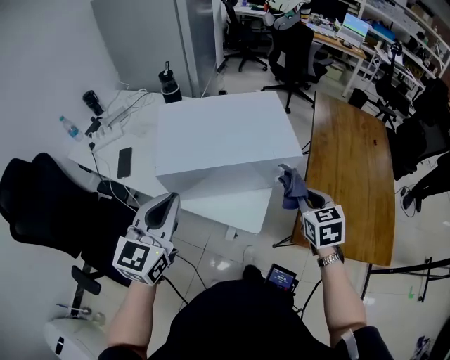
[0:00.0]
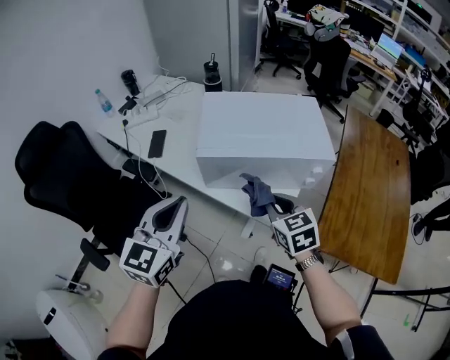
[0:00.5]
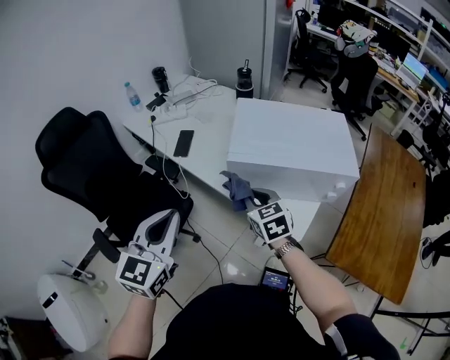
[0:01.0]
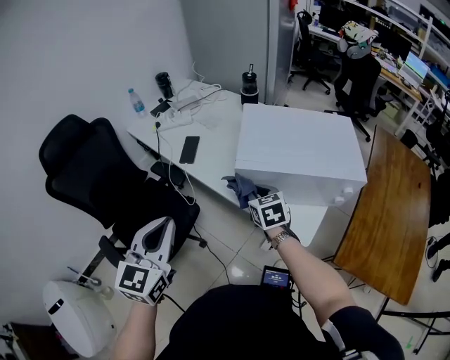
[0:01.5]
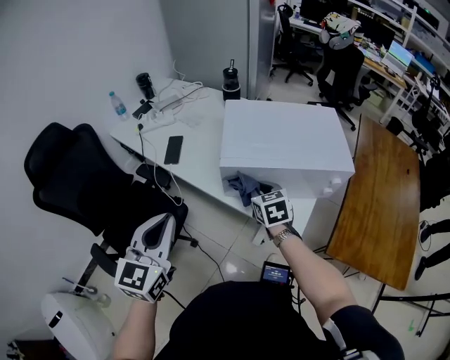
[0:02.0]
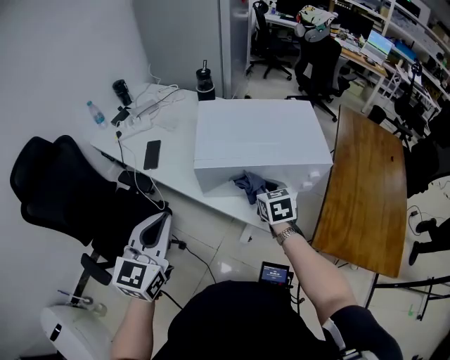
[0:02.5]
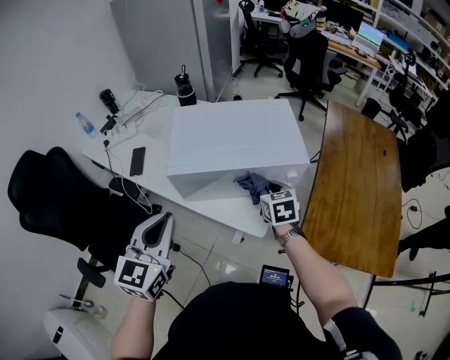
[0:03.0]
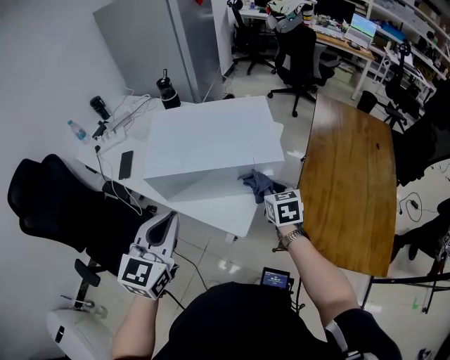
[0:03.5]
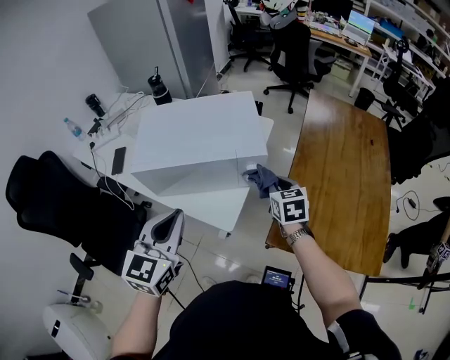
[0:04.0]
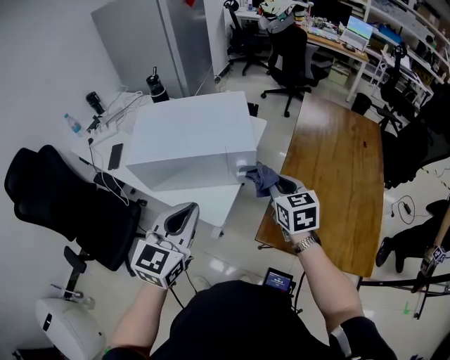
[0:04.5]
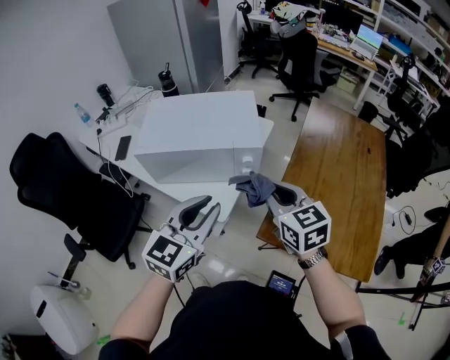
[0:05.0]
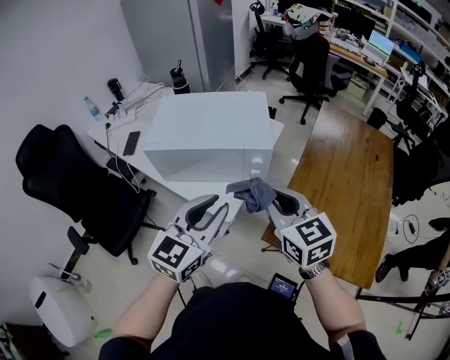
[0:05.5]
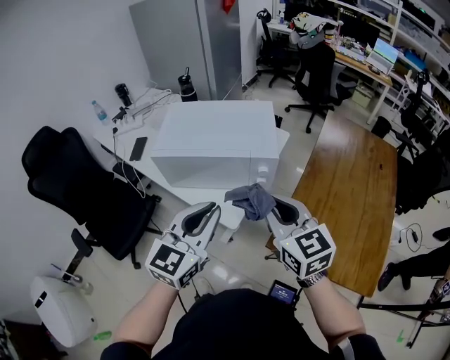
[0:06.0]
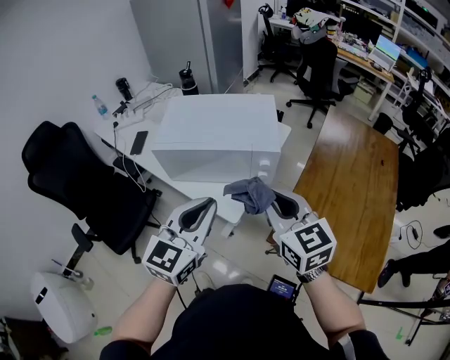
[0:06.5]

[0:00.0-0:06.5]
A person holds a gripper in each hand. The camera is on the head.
0:00.0 to 0:02.0: The right gripper moves some 35 cm, and swivels some 20 degrees; the left gripper ends up about 20 cm from where it was.
0:02.0 to 0:04.5: Both grippers travel together to the right, approximately 40 cm.
0:04.5 to 0:06.5: The right gripper shifts roughly 15 cm upward, to the left and backward, and turns by about 20 degrees.

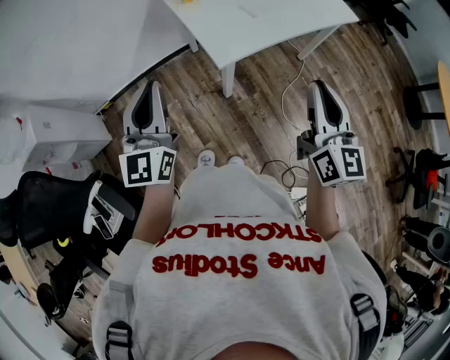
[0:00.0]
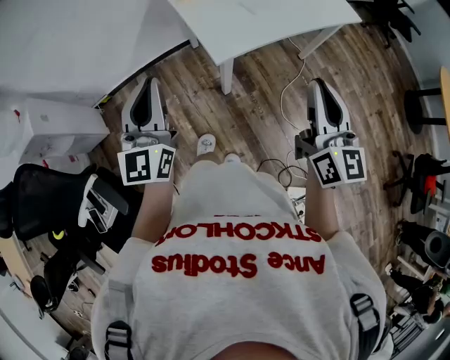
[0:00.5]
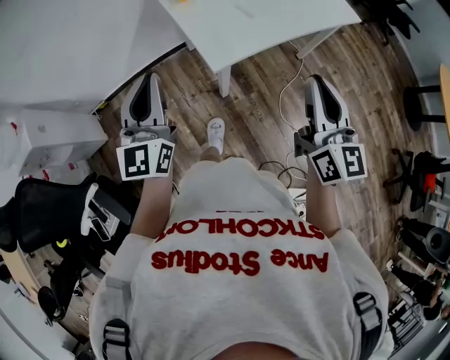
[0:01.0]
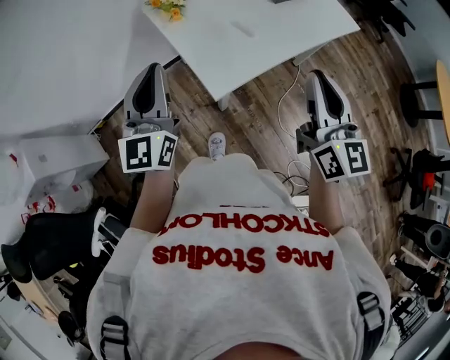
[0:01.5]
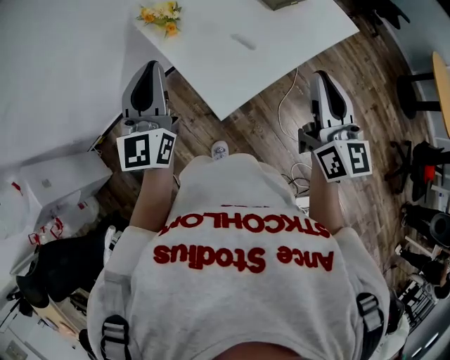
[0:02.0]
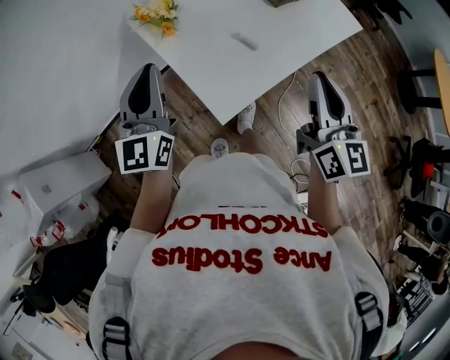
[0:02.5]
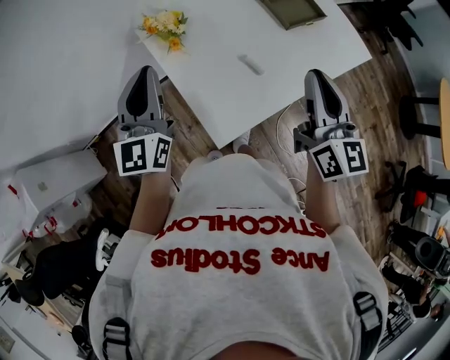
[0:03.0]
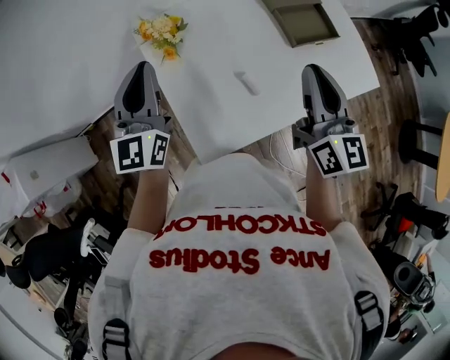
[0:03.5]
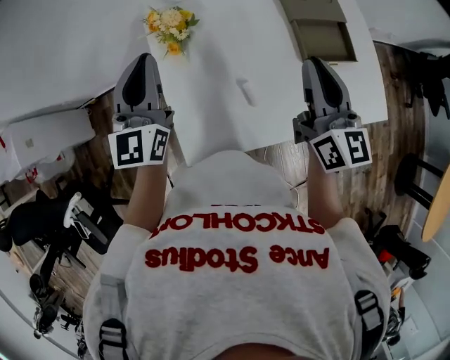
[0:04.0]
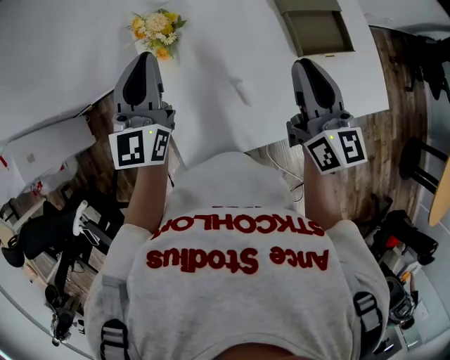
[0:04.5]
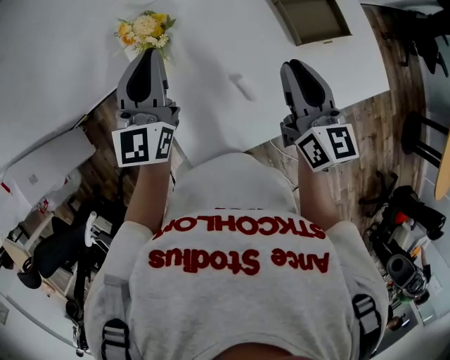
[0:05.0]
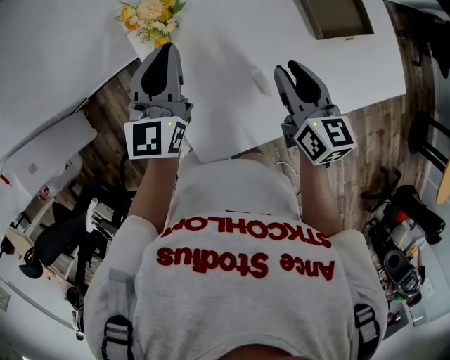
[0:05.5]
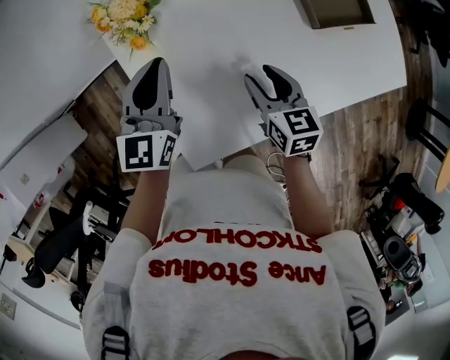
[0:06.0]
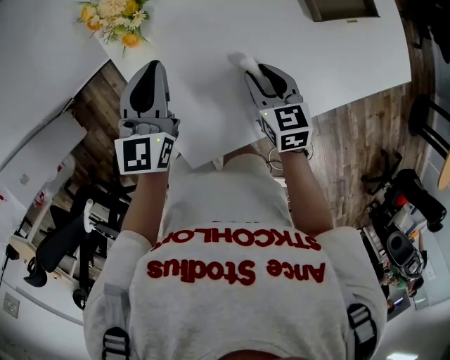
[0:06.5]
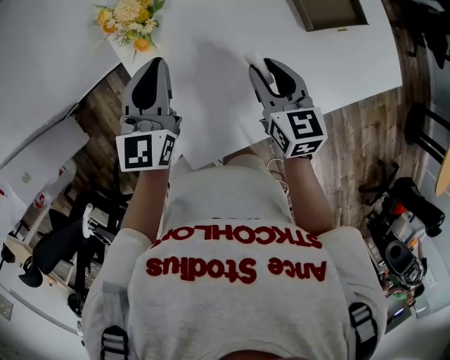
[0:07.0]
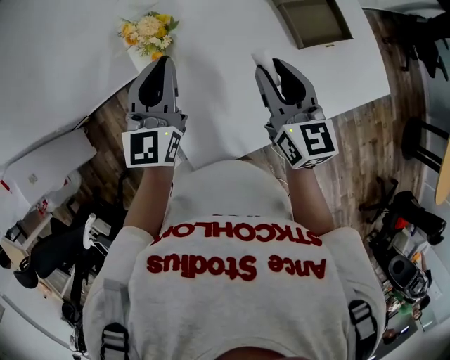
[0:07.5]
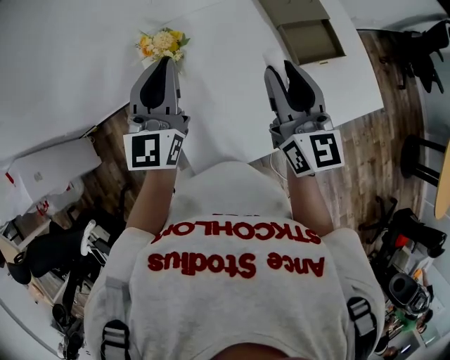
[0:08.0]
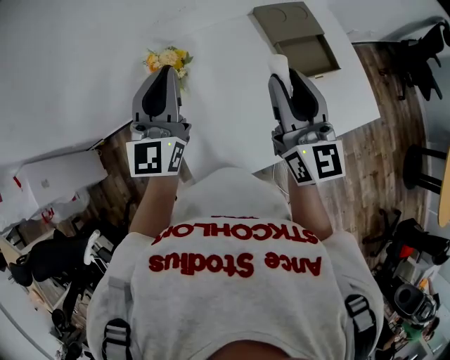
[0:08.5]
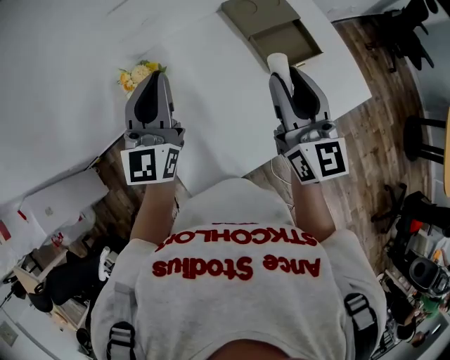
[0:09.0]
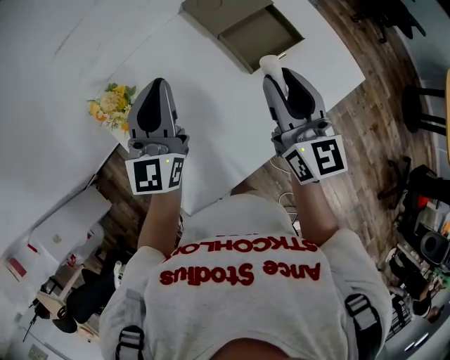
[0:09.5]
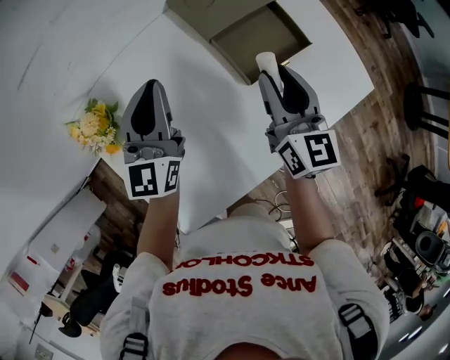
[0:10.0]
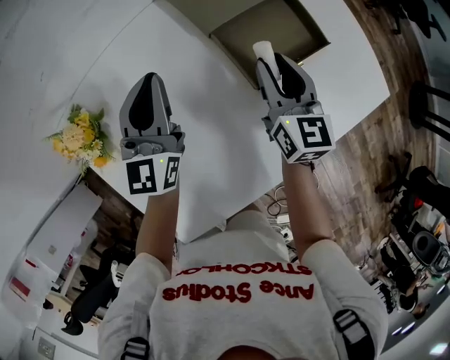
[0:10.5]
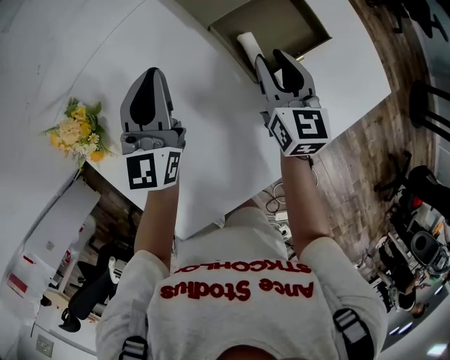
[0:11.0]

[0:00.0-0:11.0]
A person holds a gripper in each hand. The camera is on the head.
0:00.0 to 0:02.0: Both grippers move forward, about 20 cm.
0:02.0 to 0:03.5: The right gripper shifts approximately 20 cm forward. Meanwhile the left gripper goes roughly 10 cm forward.
0:03.5 to 0:05.5: The left gripper moves downward, to the right and forward, about 10 cm. Meanwhile the right gripper heads downward, covering approximately 15 cm, swivels roughly 30 degrees, and opens its fingers.
0:05.5 to 0:07.5: The right gripper goes approximately 5 cm upward.
0:07.5 to 0:09.0: The left gripper moves upward, about 5 cm. The right gripper shifts roughly 10 cm upward and to the right.
0:09.0 to 0:11.0: The left gripper is displaced downward, forward and to the right by about 20 cm; the right gripper is displaced downward and forward by roughly 25 cm, and turns by about 30 degrees.

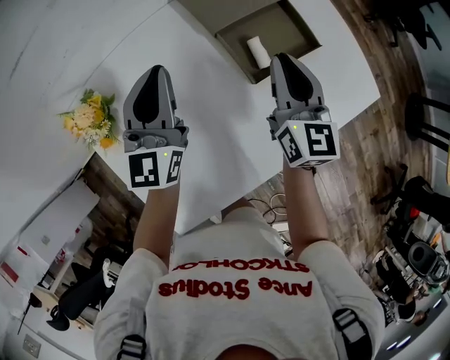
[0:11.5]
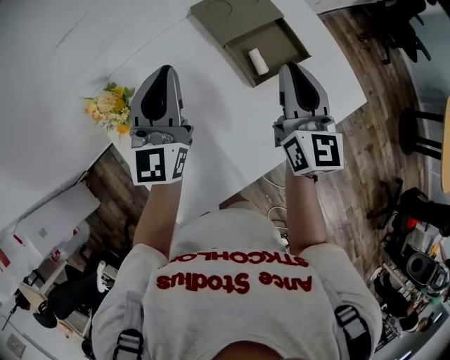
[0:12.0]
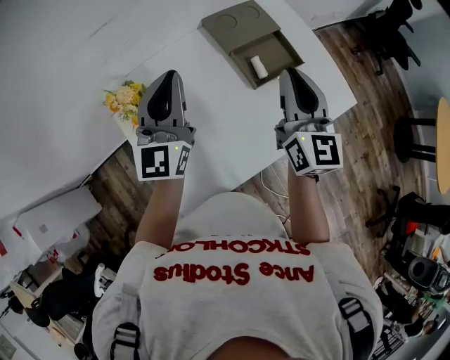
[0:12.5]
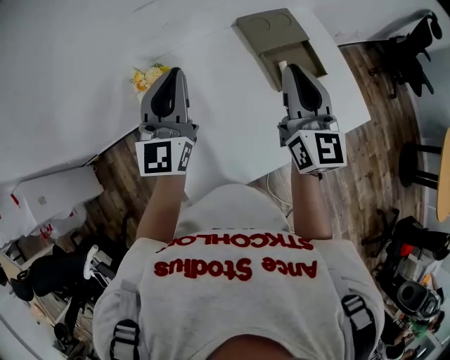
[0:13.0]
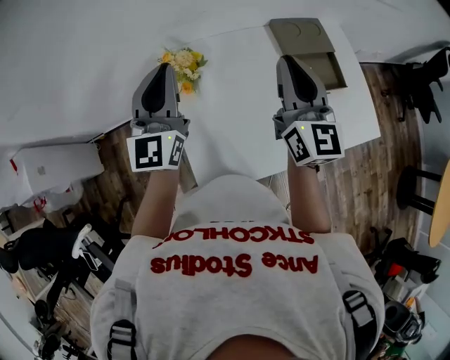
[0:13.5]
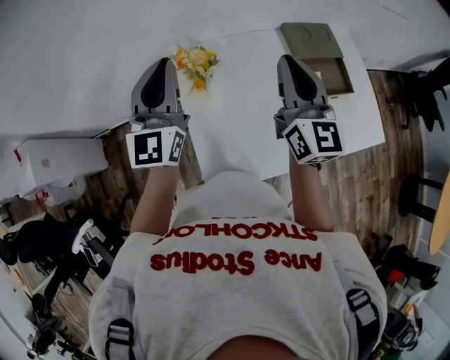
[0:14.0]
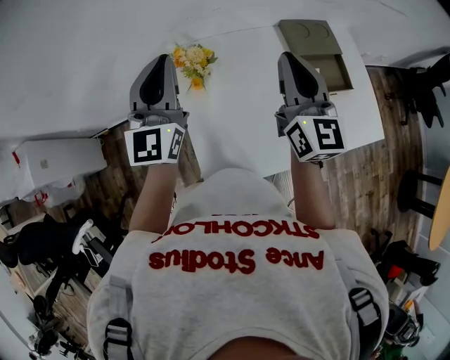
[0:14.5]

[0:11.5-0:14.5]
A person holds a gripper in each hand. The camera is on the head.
0:11.5 to 0:13.0: Both grippers move upward, to the left and backward, about 20 cm.
0:13.0 to 0:14.5: Both grippers travel together to the left, roughly 10 cm.

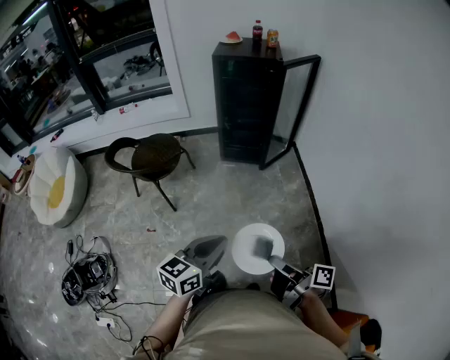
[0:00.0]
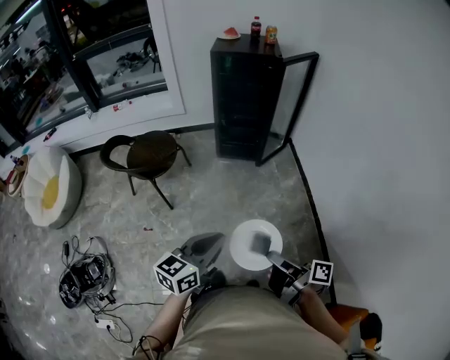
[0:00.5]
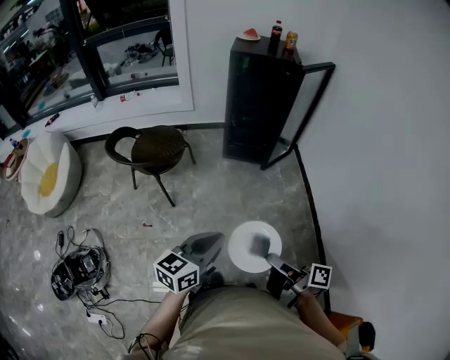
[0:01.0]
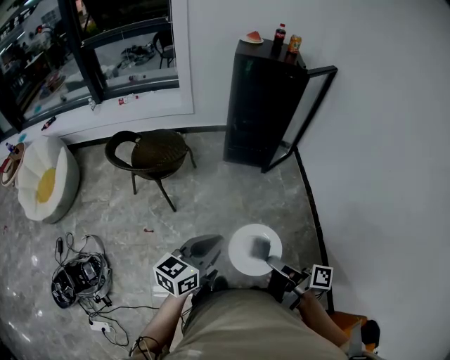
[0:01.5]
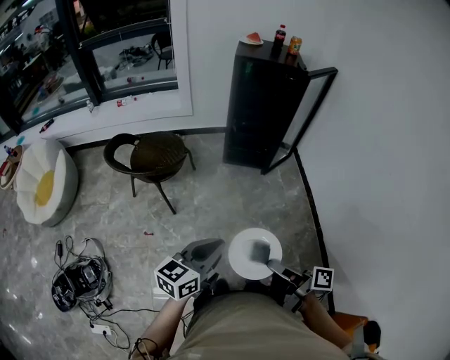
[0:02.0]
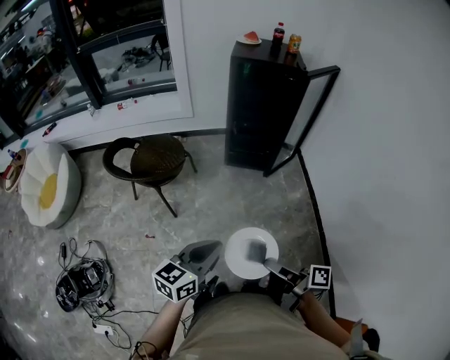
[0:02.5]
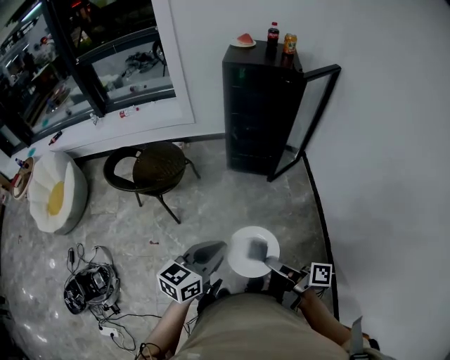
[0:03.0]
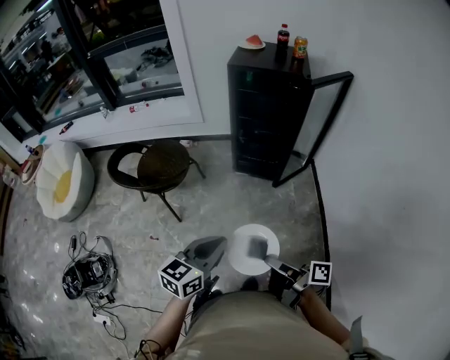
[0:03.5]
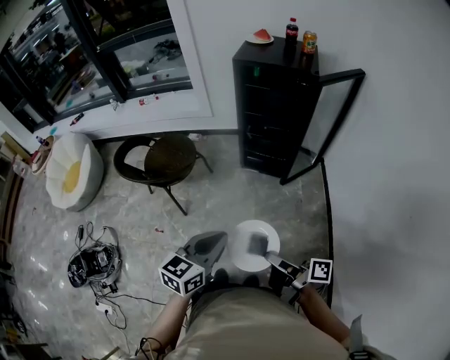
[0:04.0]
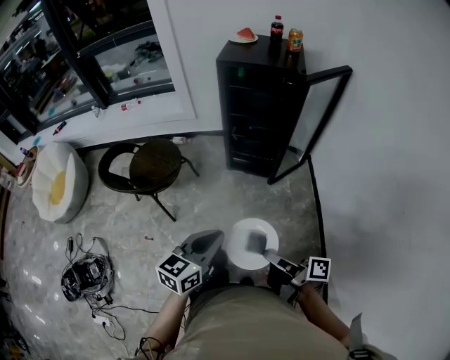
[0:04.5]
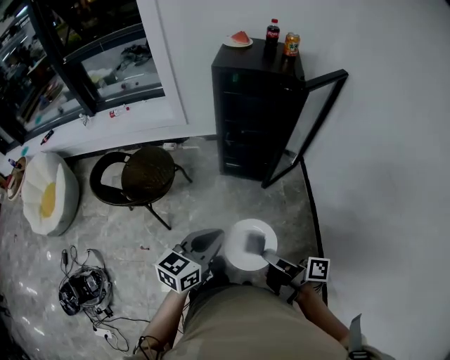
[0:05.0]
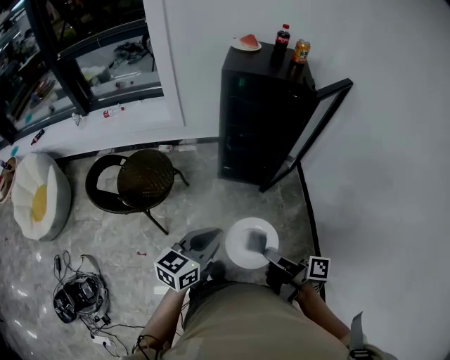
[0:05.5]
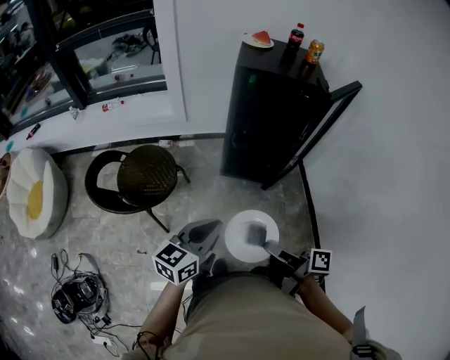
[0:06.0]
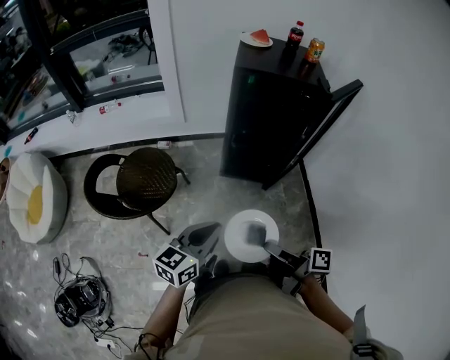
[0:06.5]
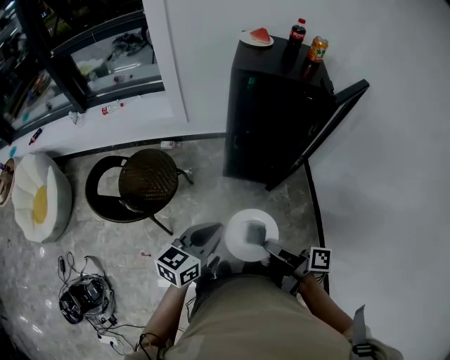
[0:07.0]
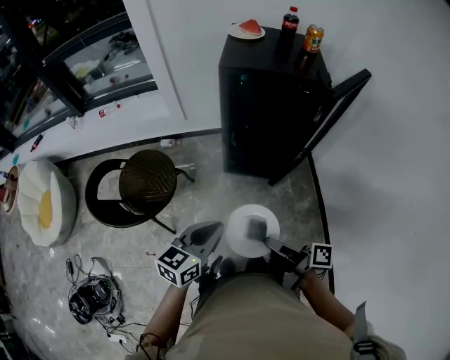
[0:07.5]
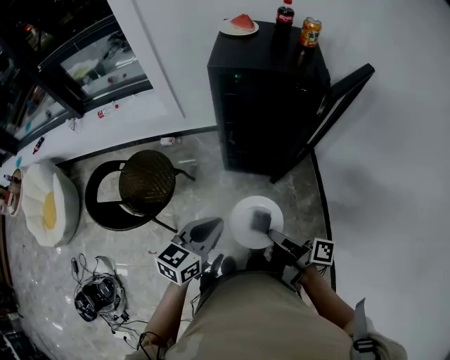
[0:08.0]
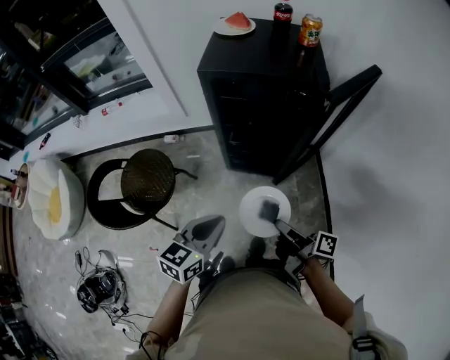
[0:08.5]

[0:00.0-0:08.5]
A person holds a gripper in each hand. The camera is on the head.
0:00.0 to 0:02.0: The left gripper shifts by about 10 cm.
0:02.0 to 0:04.0: The left gripper shifts by some 20 cm.
0:04.0 to 0:06.5: The left gripper ends up roughly 20 cm from where it was.
0:06.5 to 0:08.5: The left gripper ends up about 15 cm from where it was.
